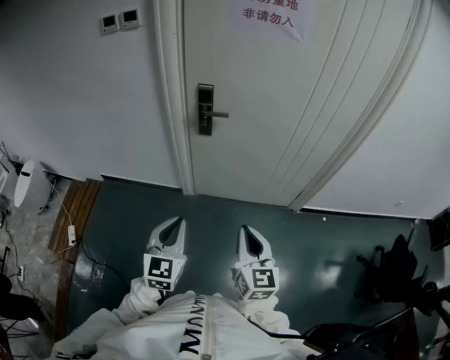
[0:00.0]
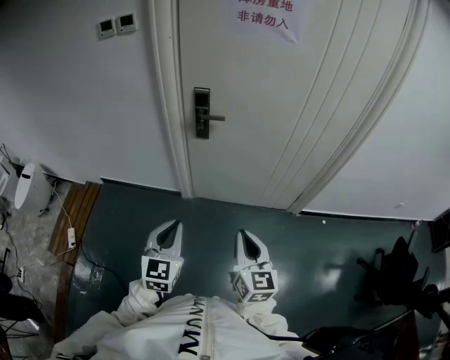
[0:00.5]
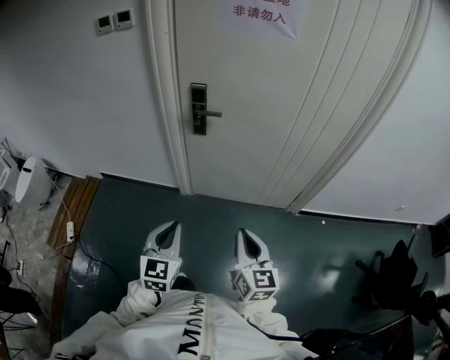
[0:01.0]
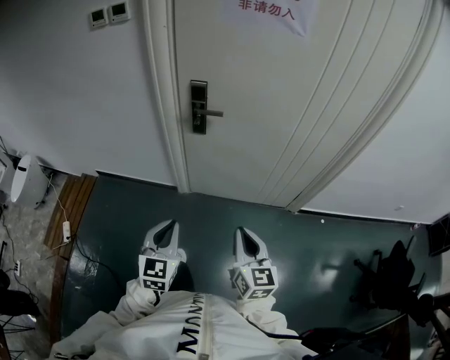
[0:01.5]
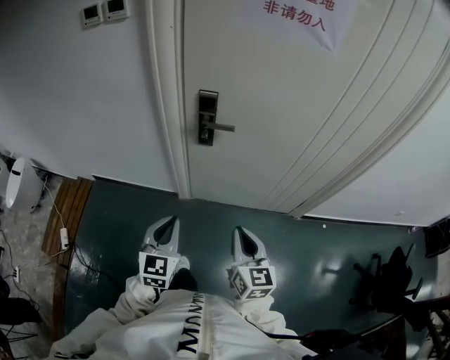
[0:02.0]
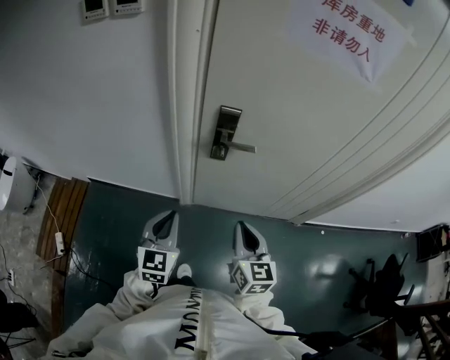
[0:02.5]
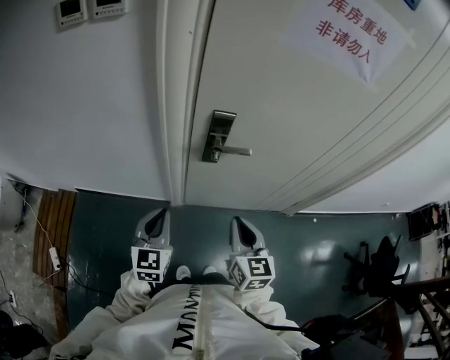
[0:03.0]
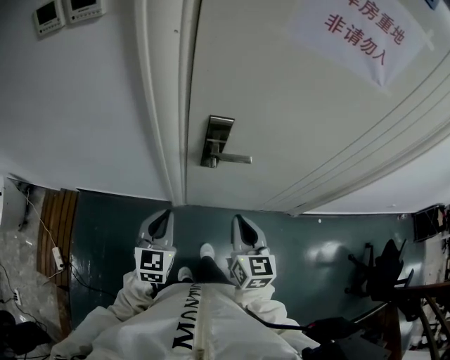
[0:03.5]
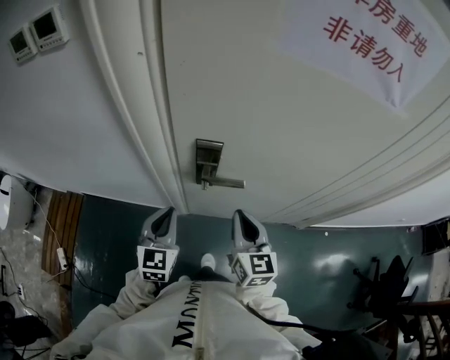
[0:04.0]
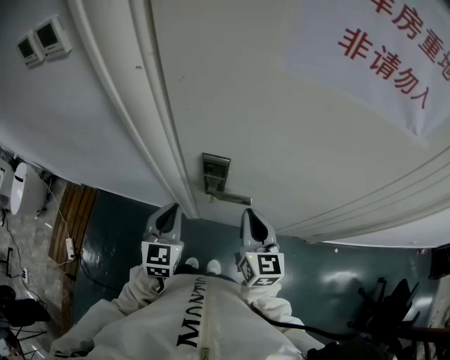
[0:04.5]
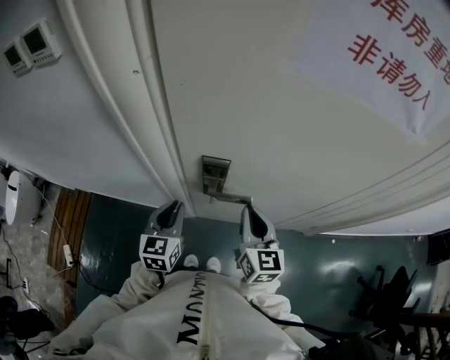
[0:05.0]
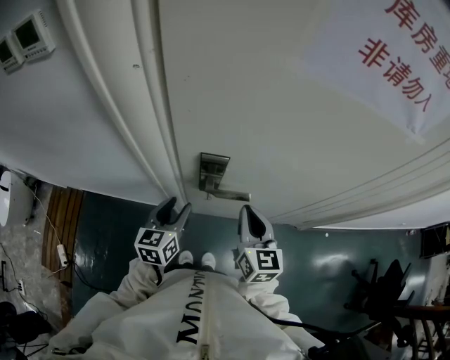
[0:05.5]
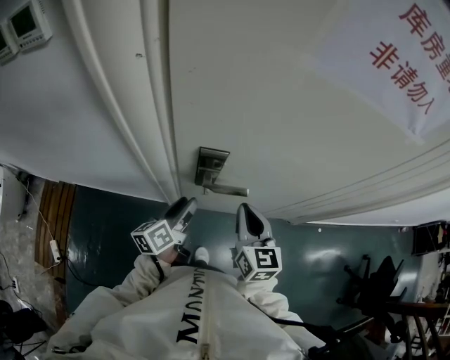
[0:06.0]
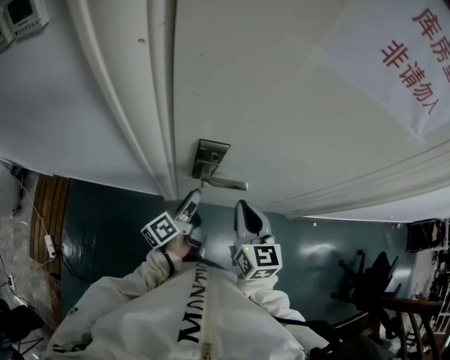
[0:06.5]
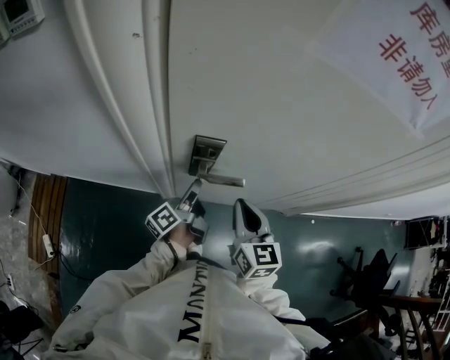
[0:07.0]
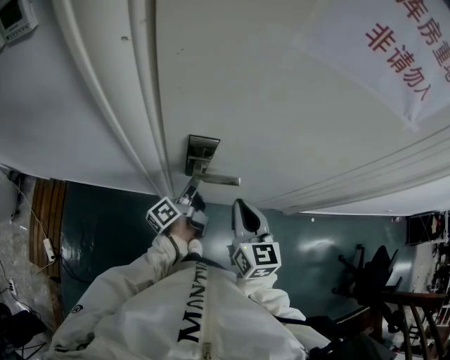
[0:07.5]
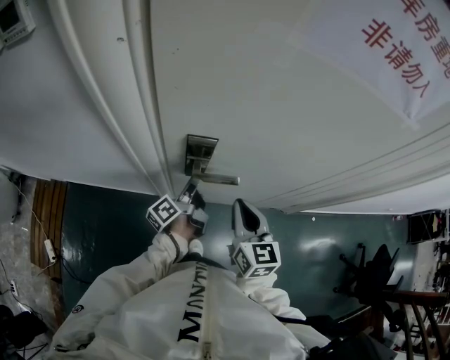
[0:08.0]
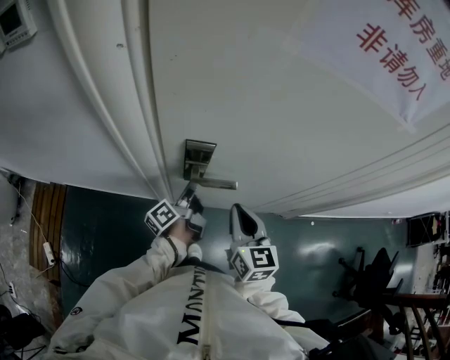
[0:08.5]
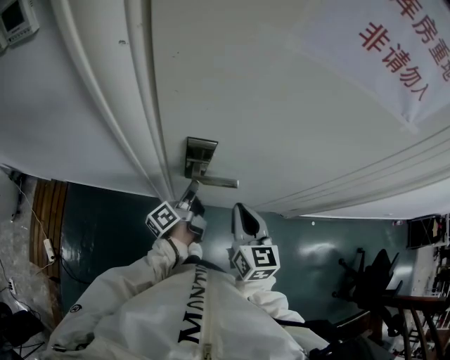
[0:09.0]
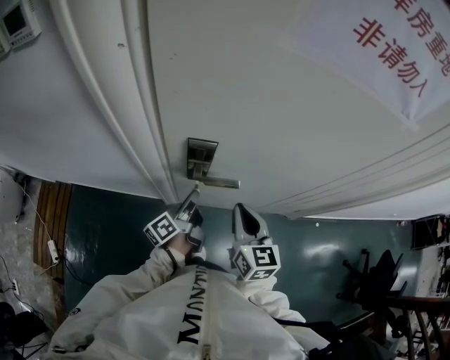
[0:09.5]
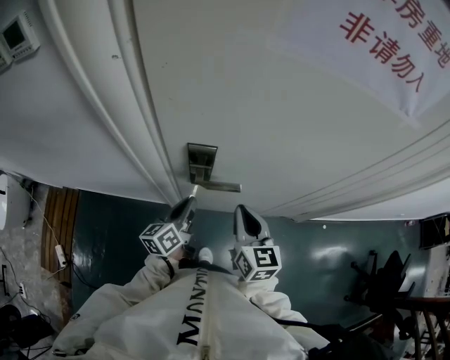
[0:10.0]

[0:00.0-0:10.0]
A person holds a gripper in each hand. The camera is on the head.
0:00.0 to 0:02.0: Both grippers travel together forward, some 15 cm.
0:02.0 to 0:04.0: The two grippers go approximately 25 cm forward.
0:04.0 to 0:06.0: The left gripper heads forward and downward, covering roughly 10 cm, rotates around the line of its fingers by roughly 60 degrees, counterclockwise from behind, and opens its fingers.
0:06.0 to 0:08.0: The left gripper goes about 5 cm forward, swivels some 30 degrees, and closes up.
0:08.0 to 0:10.0: The left gripper travels backward by roughly 5 cm, and rotates about 40 degrees.

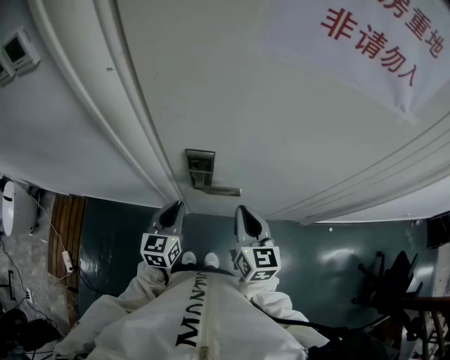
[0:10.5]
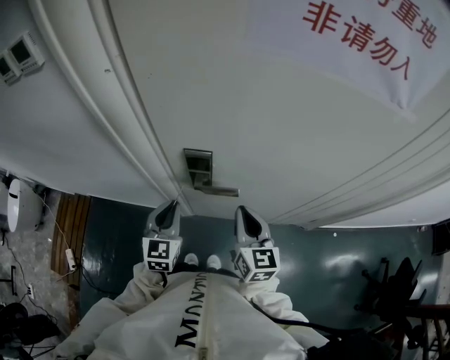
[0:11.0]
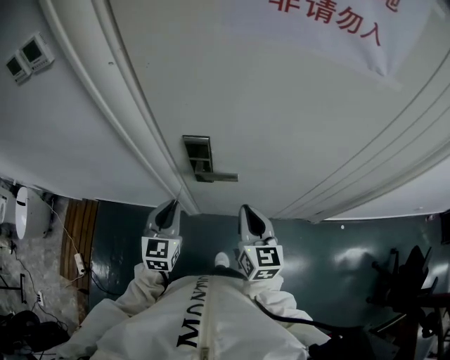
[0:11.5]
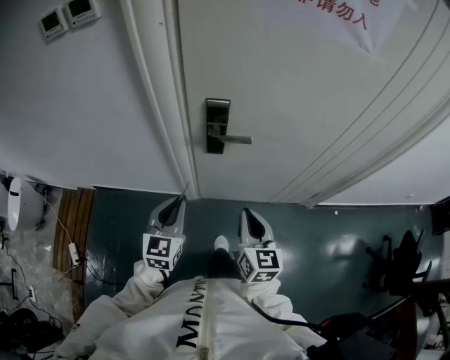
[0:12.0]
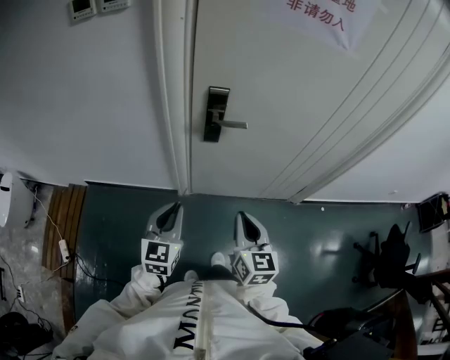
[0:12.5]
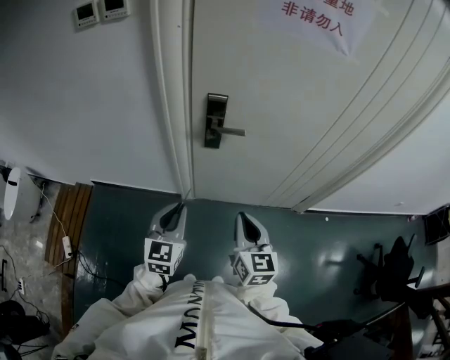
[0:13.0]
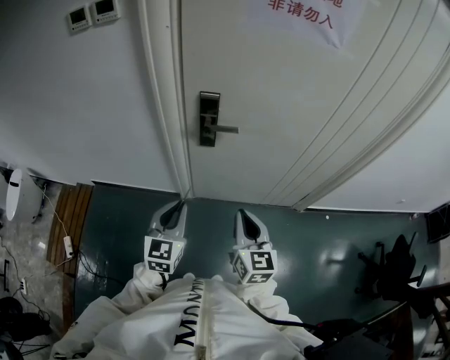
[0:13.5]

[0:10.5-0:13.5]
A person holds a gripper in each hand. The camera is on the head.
0:10.5 to 0:12.0: Both grippers move backward, approximately 15 cm.
0:12.0 to 0:13.5: The two grippers go some 10 cm backward.

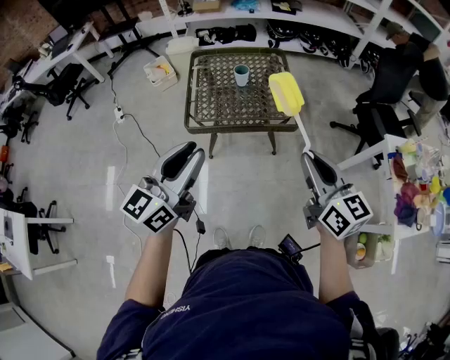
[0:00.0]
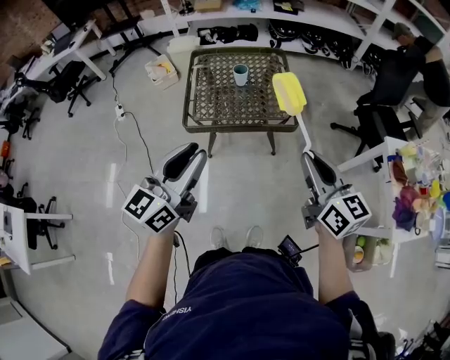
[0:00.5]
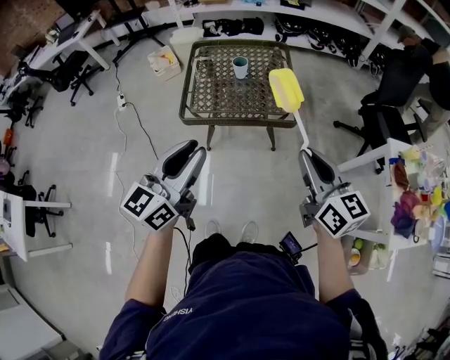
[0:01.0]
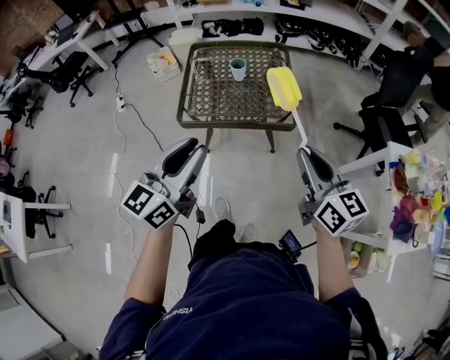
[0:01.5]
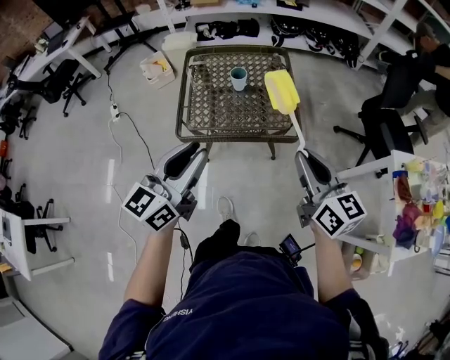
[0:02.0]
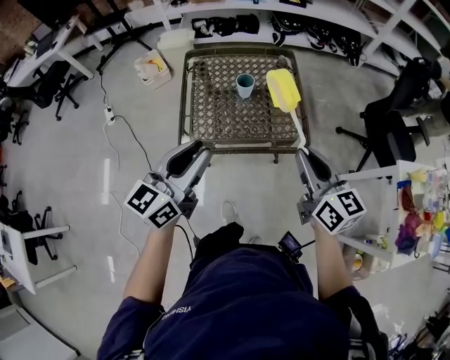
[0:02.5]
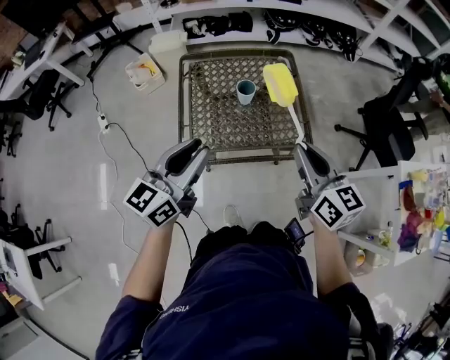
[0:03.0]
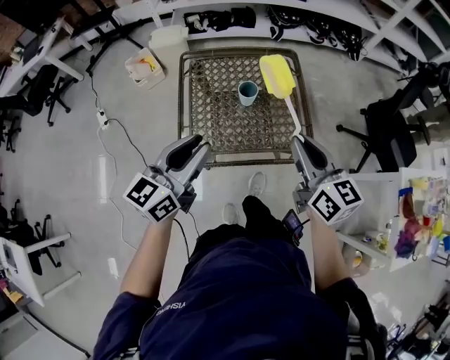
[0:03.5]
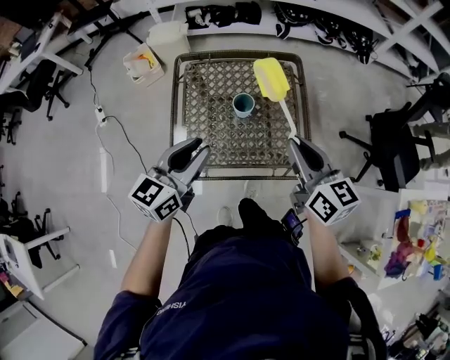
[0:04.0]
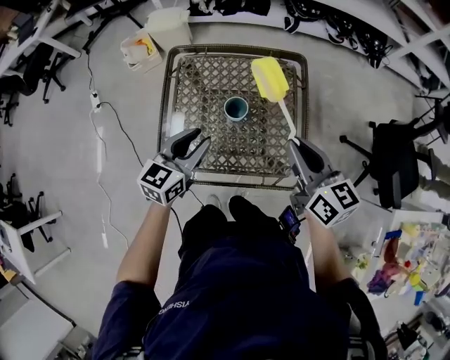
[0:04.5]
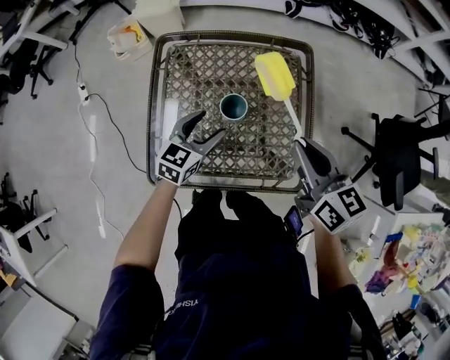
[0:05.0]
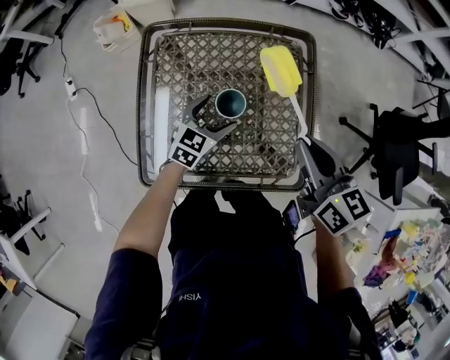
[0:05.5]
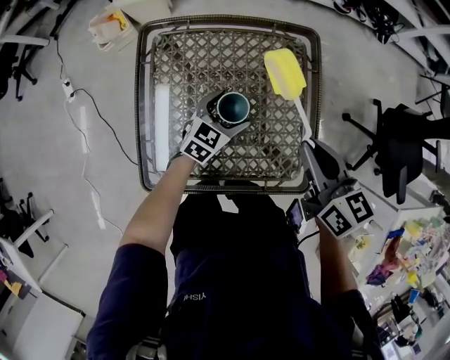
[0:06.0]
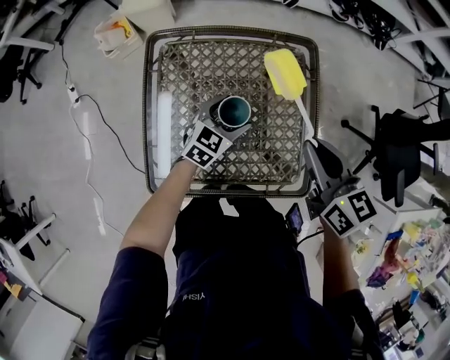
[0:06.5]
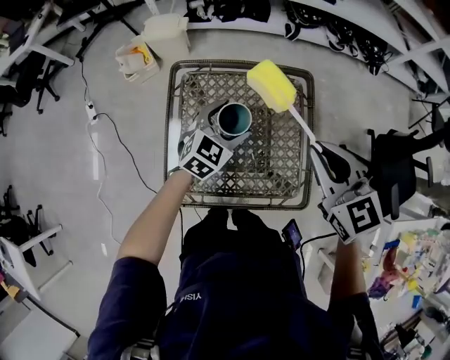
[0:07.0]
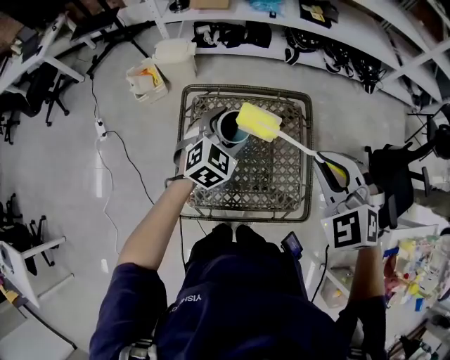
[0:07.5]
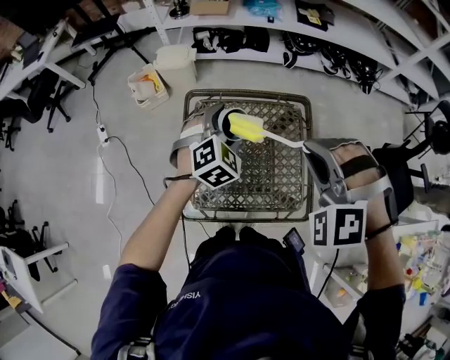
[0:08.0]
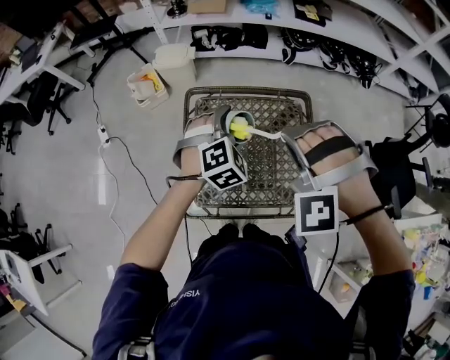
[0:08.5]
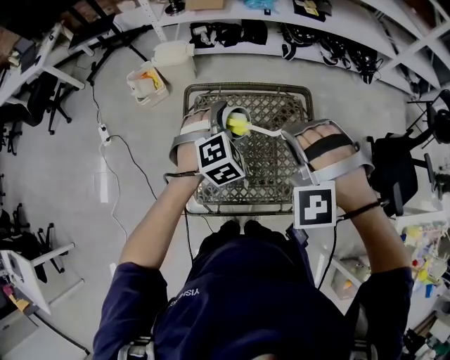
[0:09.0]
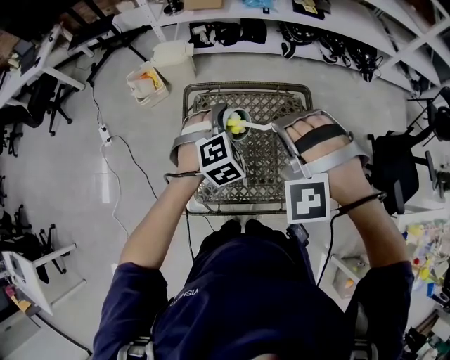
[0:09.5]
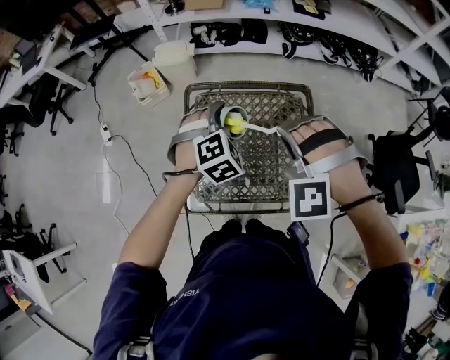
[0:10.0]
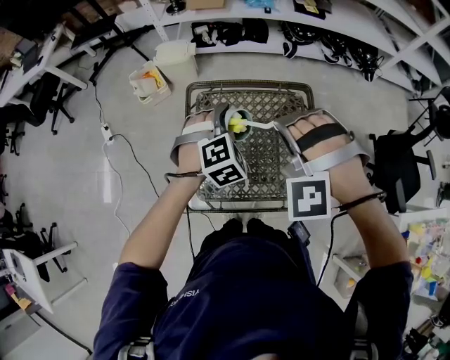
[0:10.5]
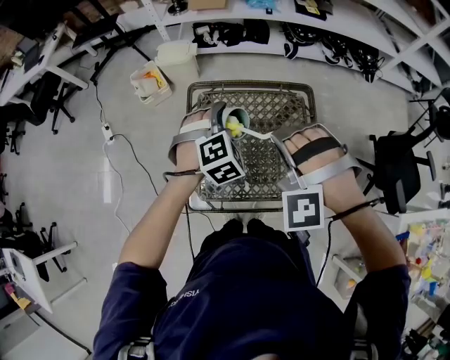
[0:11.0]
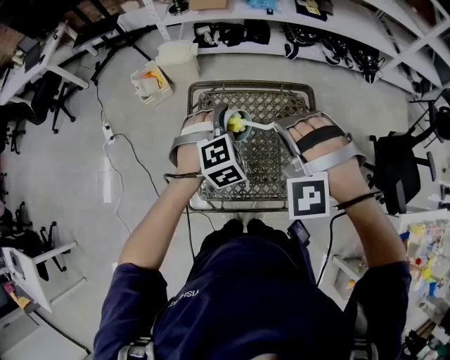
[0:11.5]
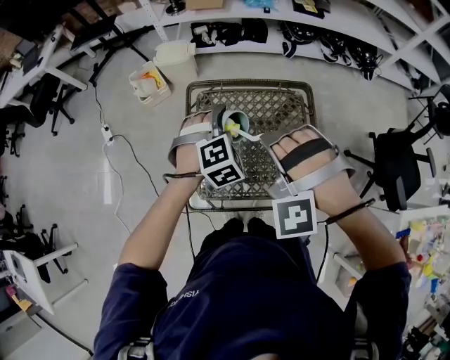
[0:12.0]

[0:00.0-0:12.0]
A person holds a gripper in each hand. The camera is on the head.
0:00.0 to 0:02.0: Both grippers move forward, about 10 cm.
0:02.0 to 0:04.0: The two grippers go roughly 25 cm forward.
0:04.0 to 0:06.0: The right gripper travels downward and forward by roughly 15 cm; the left gripper heads downward and forward, covering about 35 cm, rotates about 30 degrees, and opens its fingers.
0:06.0 to 0:08.0: The two grippers go about 25 cm upward and to the left. The left gripper rotates some 40 degrees. The right gripper twists some 100 degrees counterclockwise, seen from behind.
0:08.0 to 0:10.0: The right gripper moves downward, approximately 5 cm.
0:10.0 to 0:12.0: The right gripper ends up about 5 cm from where it was.

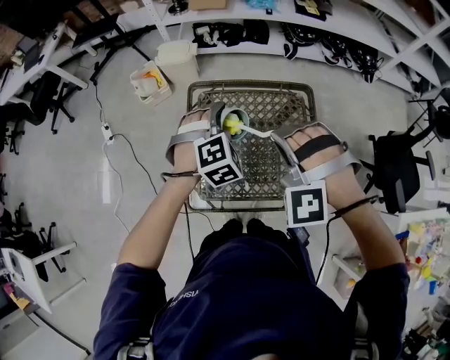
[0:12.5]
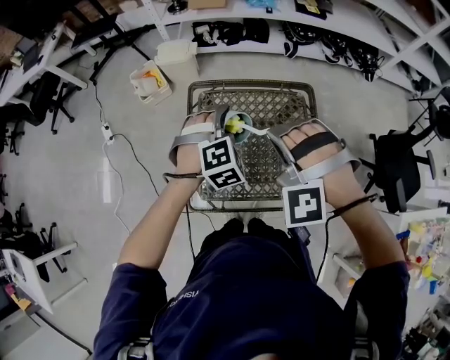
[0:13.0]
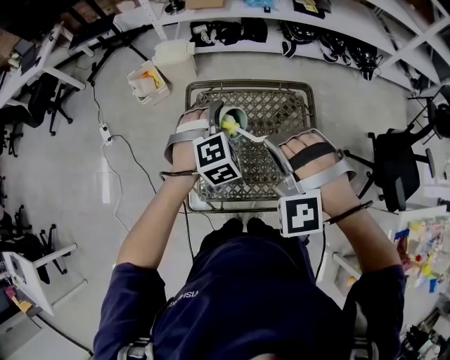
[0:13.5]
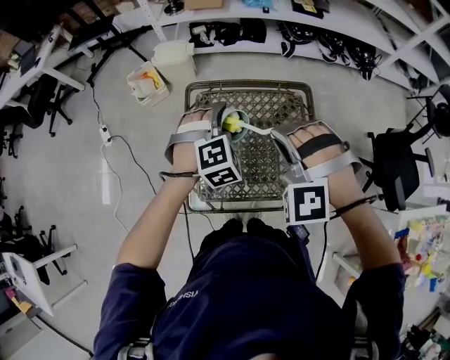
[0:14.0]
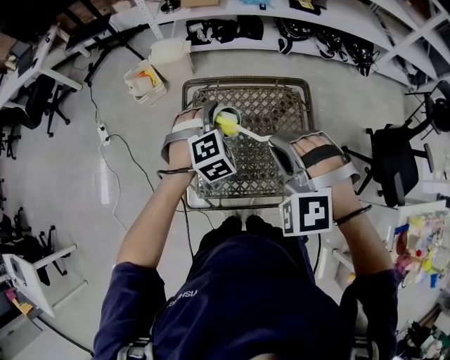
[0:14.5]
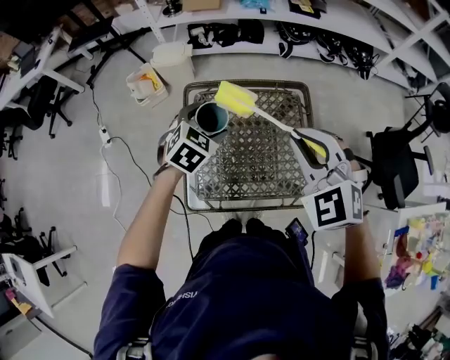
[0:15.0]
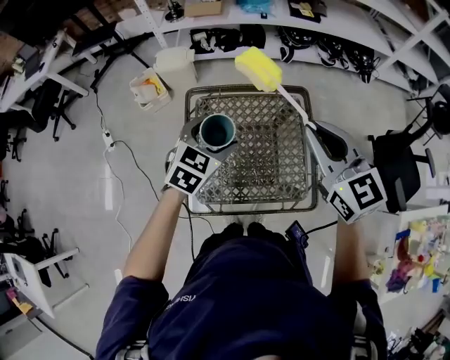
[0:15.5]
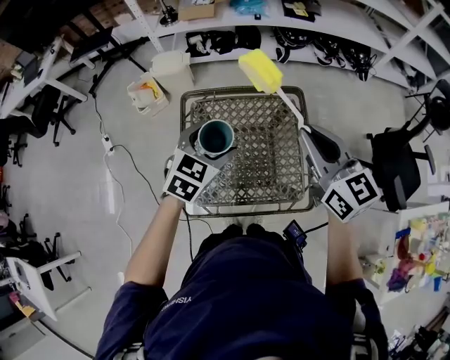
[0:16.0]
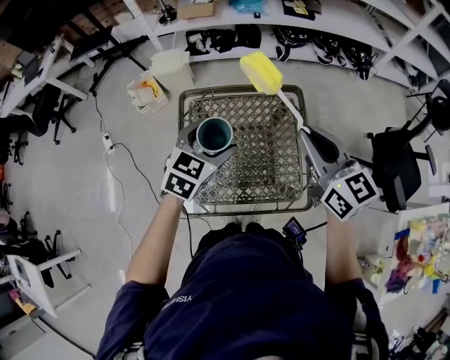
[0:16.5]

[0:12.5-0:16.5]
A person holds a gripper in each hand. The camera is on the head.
0:12.5 to 0:14.5: There are only small adjustments of the grippers.
0:14.5 to 0:16.5: The left gripper travels upward by about 5 cm, and rotates some 40 degrees. The right gripper moves to the right, about 10 cm, and rotates around the line of its fingers by some 80 degrees, clockwise from behind.
